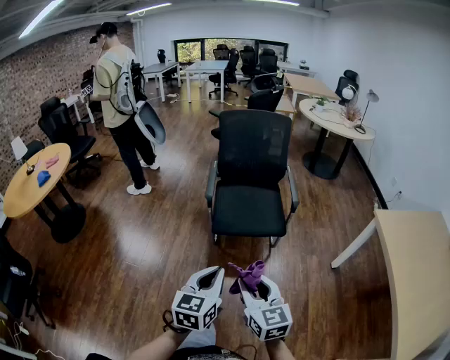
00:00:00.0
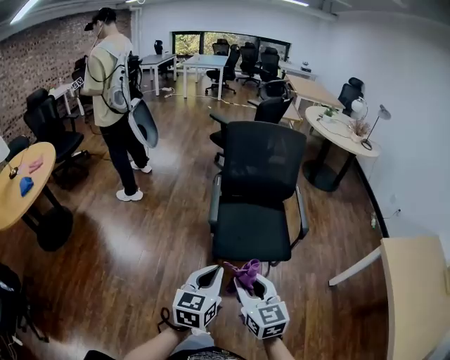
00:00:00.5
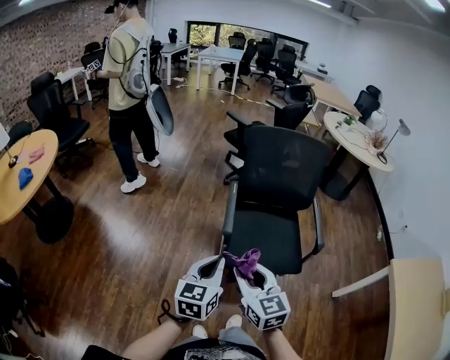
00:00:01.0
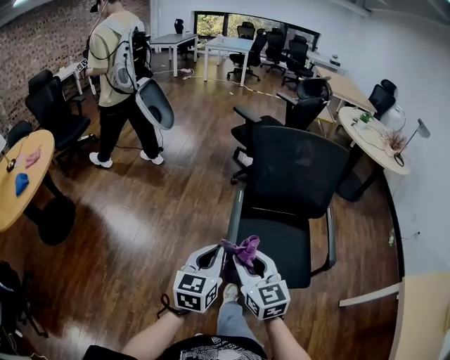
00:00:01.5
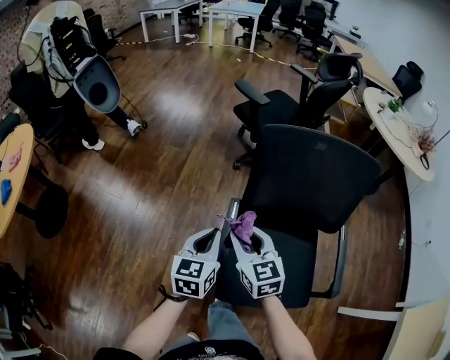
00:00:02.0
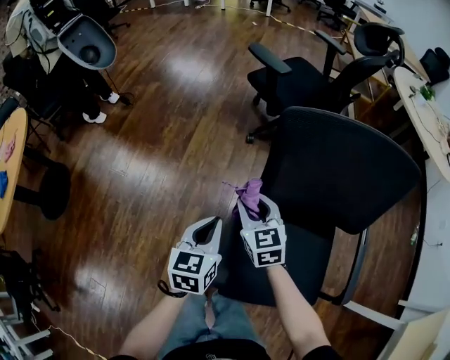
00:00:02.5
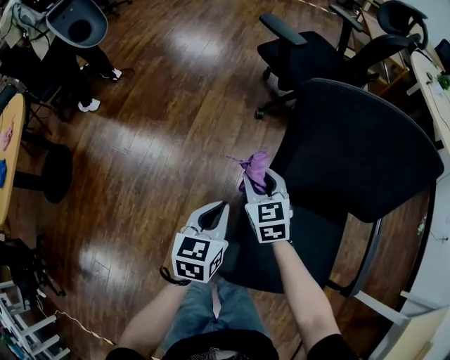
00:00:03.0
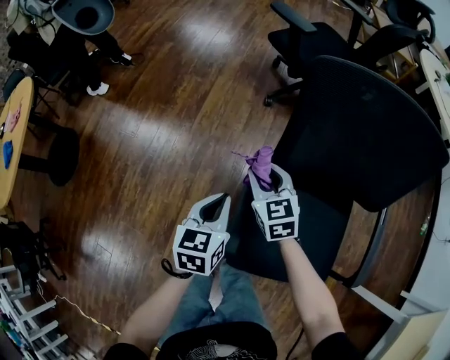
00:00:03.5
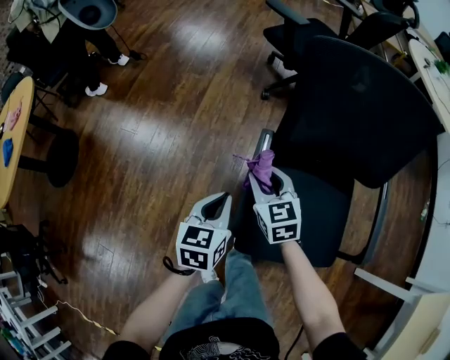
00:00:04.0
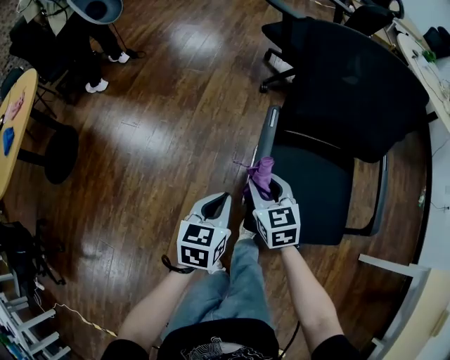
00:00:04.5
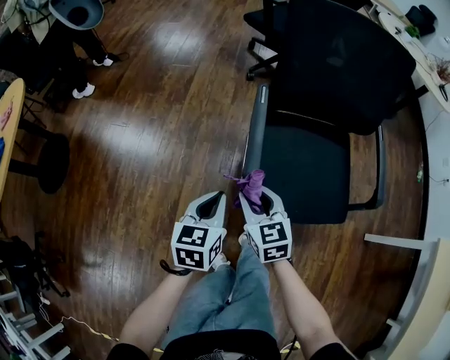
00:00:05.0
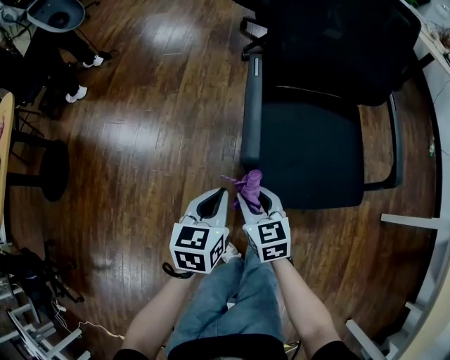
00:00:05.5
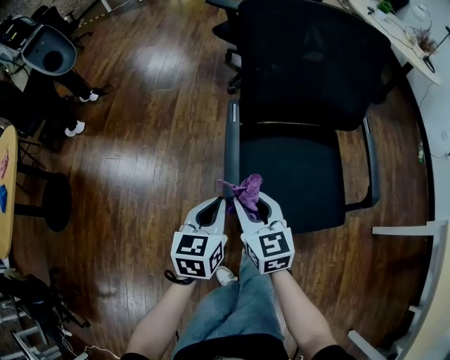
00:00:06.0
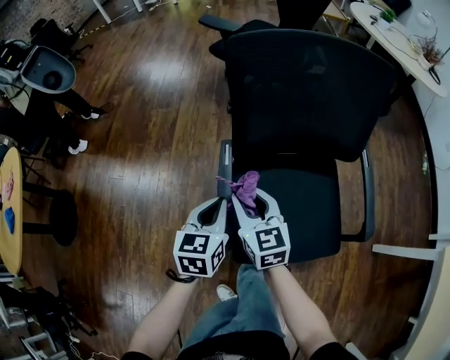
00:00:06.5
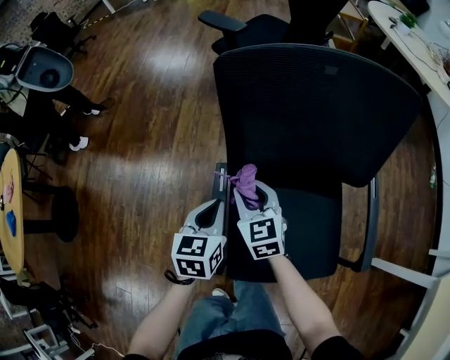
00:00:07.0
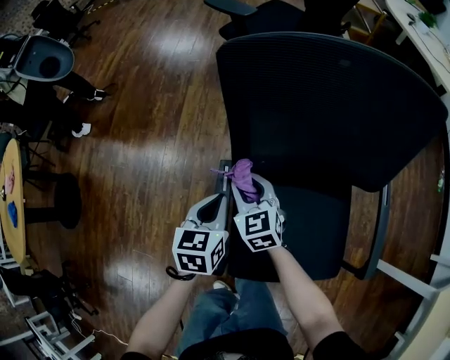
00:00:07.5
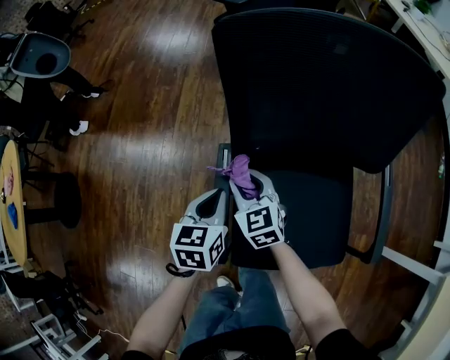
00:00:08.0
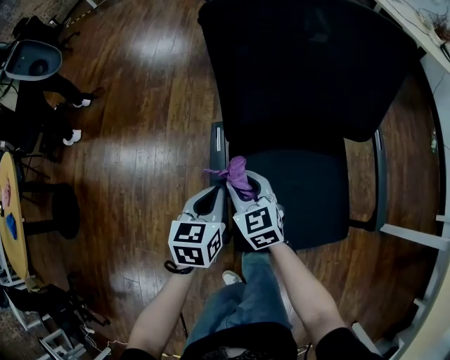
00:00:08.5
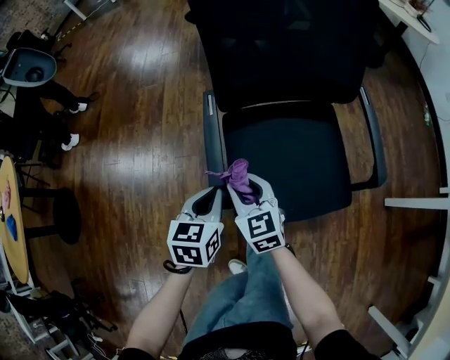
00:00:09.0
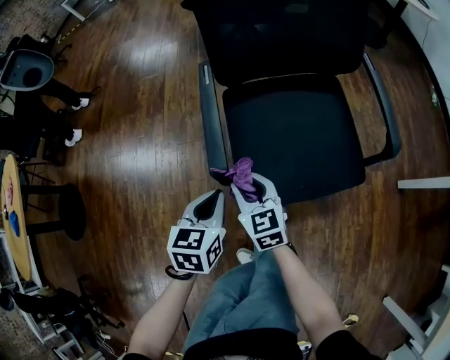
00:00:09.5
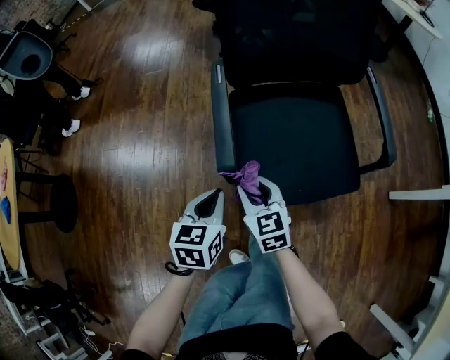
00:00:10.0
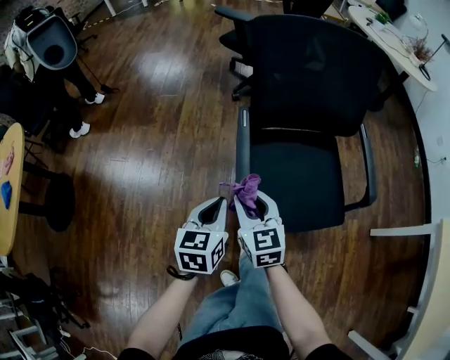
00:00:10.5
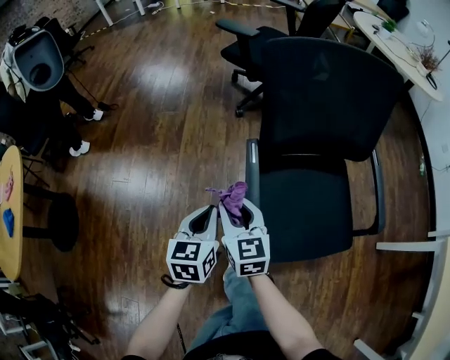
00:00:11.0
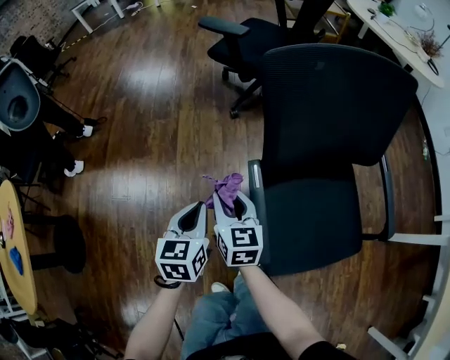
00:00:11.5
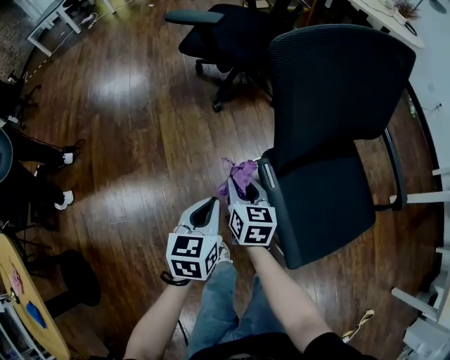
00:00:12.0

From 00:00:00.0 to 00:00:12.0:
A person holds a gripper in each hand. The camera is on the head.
From 00:00:00.0 to 00:00:02.0: Both grippers are carried forward, about 70 cm.
From 00:00:02.0 to 00:00:04.0: The grippers both shift downward by roughly 15 cm. The right gripper travels forward and back again, roughly 15 cm each way.
From 00:00:04.0 to 00:00:06.0: The right gripper shifts approximately 15 cm backward; the left gripper travels backward by approximately 10 cm.
From 00:00:06.0 to 00:00:08.0: Both grippers travel together forward, some 20 cm.
From 00:00:08.0 to 00:00:10.0: Both grippers travel together backward, approximately 25 cm.
From 00:00:10.0 to 00:00:12.0: Both grippers travel together forward and to the left, some 35 cm. The right gripper changes its angle by about 40 degrees.

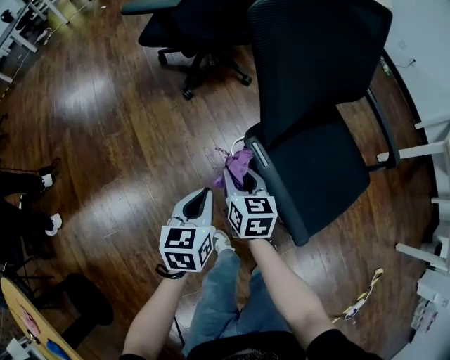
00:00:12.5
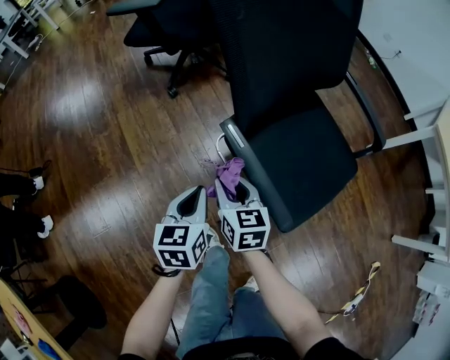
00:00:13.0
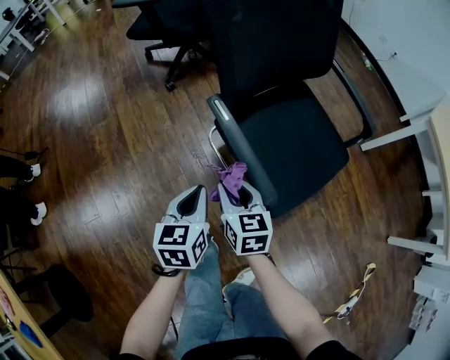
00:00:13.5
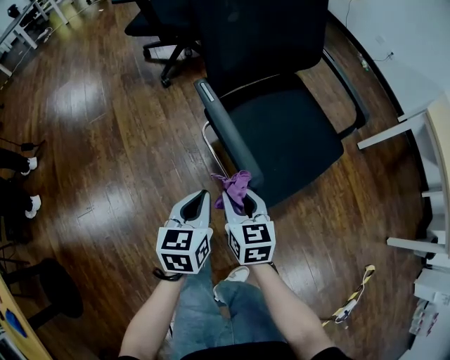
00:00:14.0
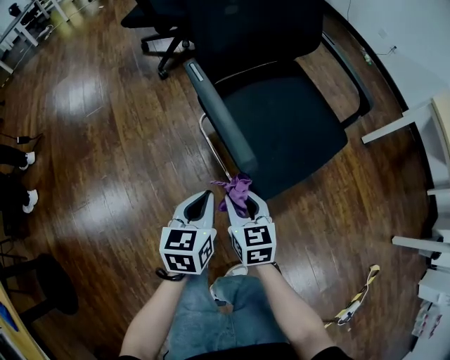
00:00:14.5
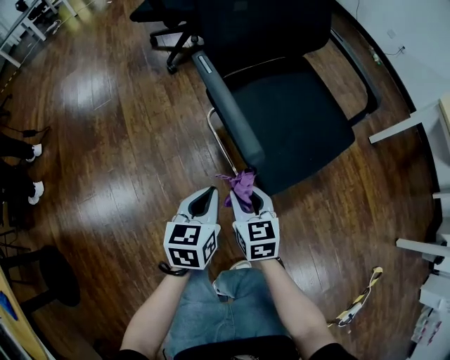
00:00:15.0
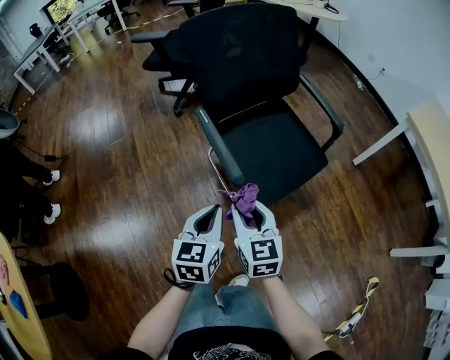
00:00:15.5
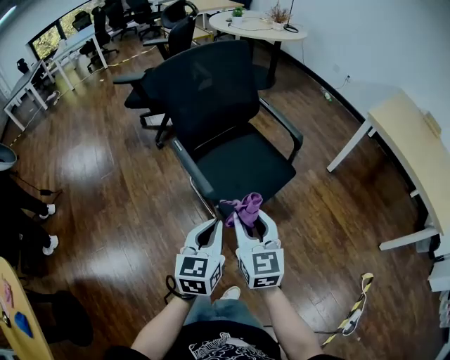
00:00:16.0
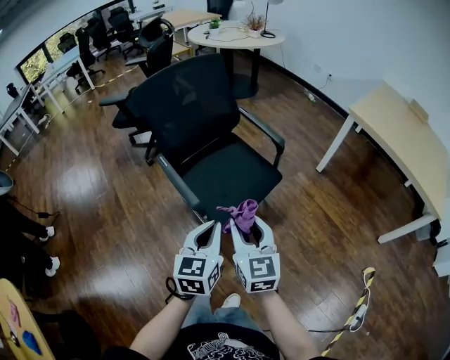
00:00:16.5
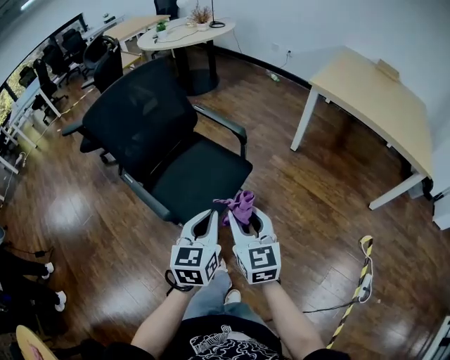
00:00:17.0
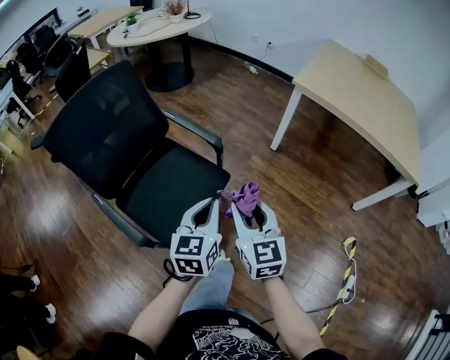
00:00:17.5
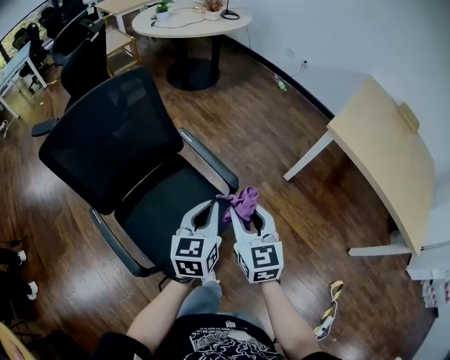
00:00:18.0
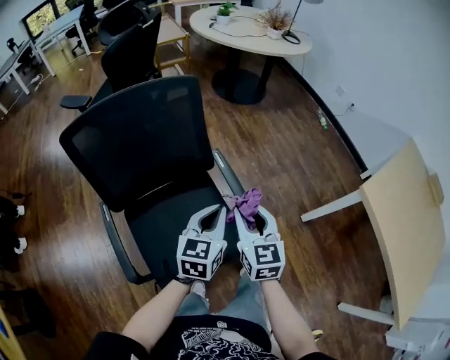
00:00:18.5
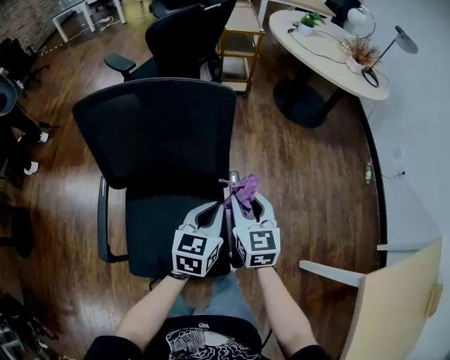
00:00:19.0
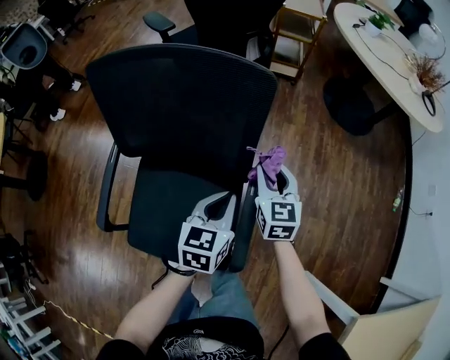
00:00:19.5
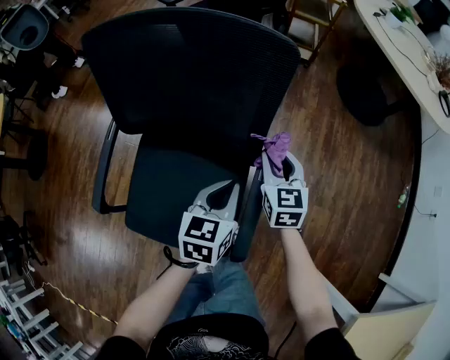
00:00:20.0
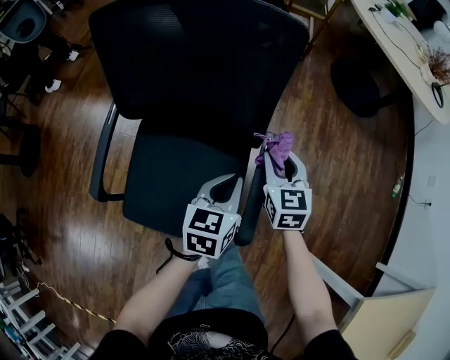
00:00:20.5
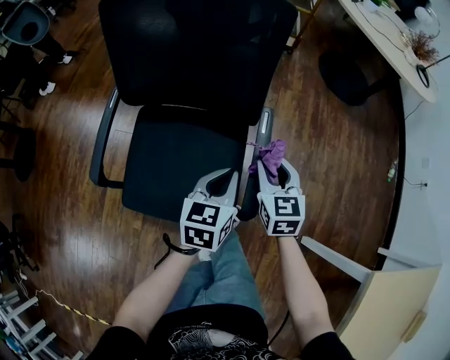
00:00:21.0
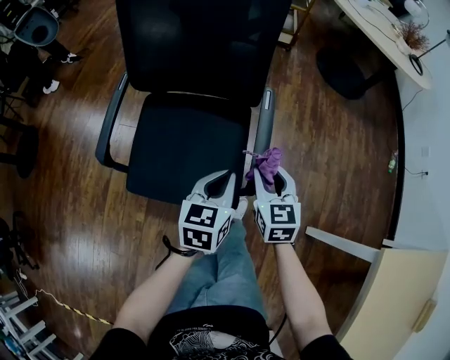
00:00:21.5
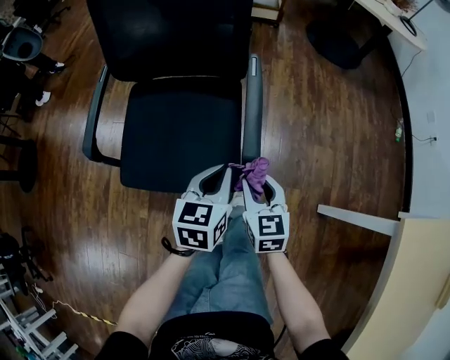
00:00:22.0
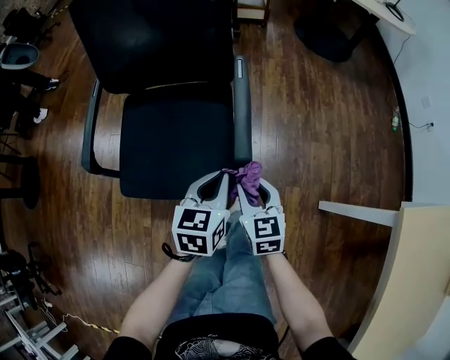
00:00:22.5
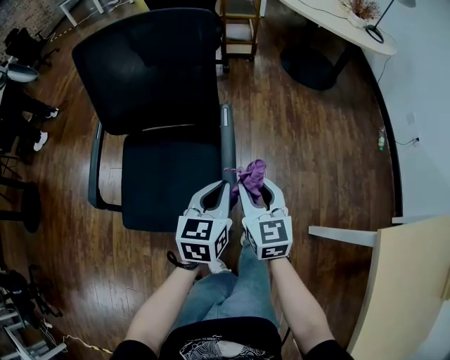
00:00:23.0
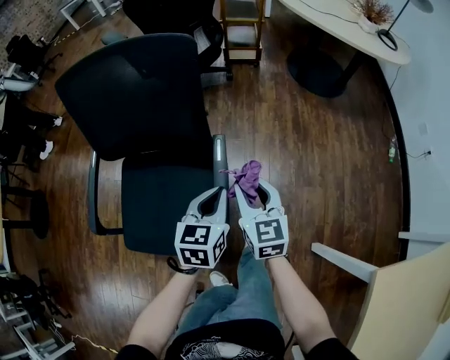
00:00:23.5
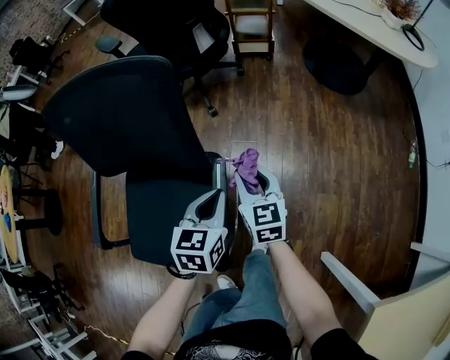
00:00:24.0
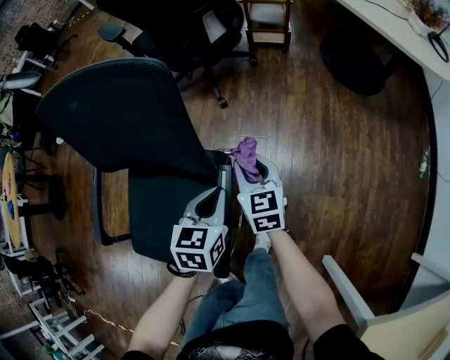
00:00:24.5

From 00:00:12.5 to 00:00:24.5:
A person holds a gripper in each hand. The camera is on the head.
From 00:00:12.5 to 00:00:14.5: Both grippers move backward and to the right, some 30 cm.
From 00:00:14.5 to 00:00:16.5: Both grippers move upward and to the right, some 35 cm. The left gripper changes its angle by approximately 20 degrees; the right gripper changes its angle by some 30 degrees.
From 00:00:16.5 to 00:00:18.5: Both grippers are carried forward, some 50 cm.
From 00:00:18.5 to 00:00:20.5: The right gripper ends up some 25 cm from where it was, and changes its angle by approximately 40 degrees. Meanwhile the left gripper is displaced downward by about 15 cm, and swivels some 40 degrees.
From 00:00:20.5 to 00:00:22.5: The two grippers go about 25 cm backward.
From 00:00:22.5 to 00:00:24.5: The two grippers go about 35 cm forward.

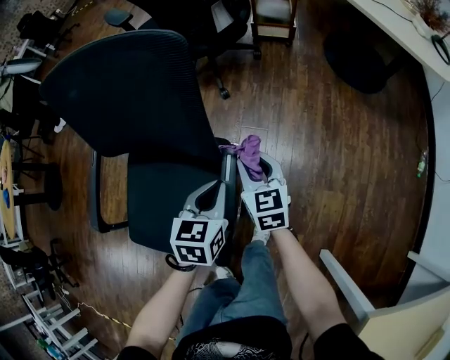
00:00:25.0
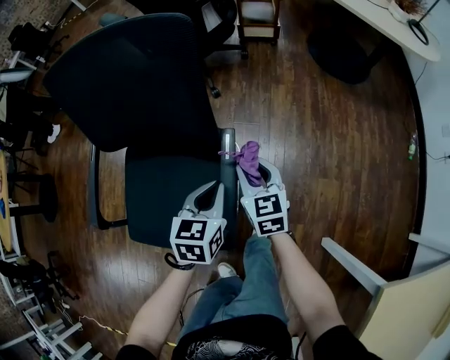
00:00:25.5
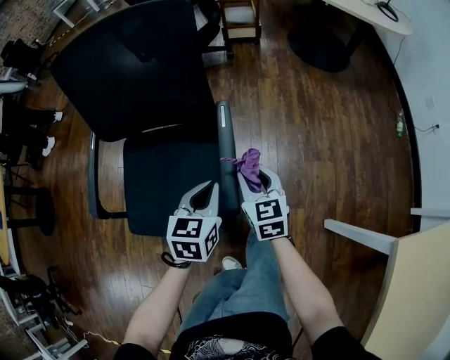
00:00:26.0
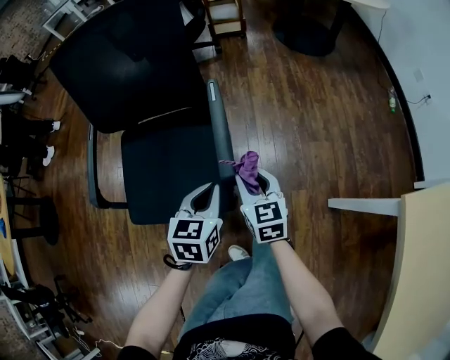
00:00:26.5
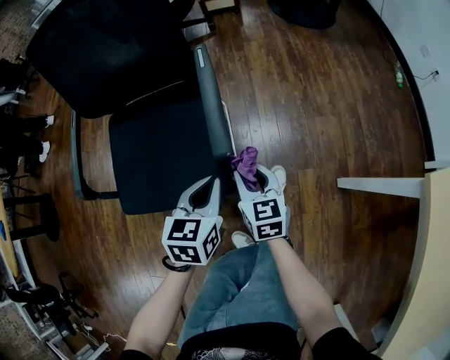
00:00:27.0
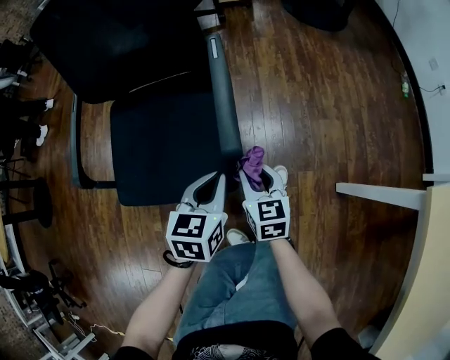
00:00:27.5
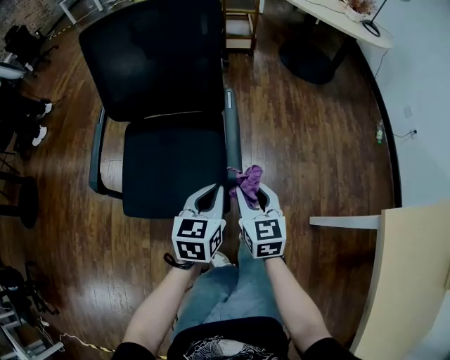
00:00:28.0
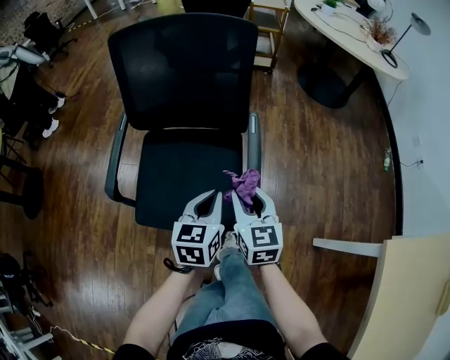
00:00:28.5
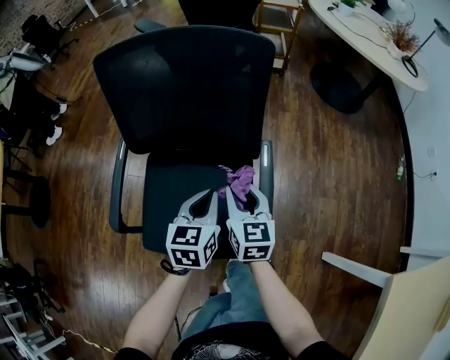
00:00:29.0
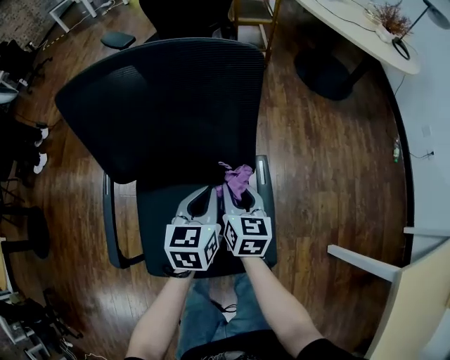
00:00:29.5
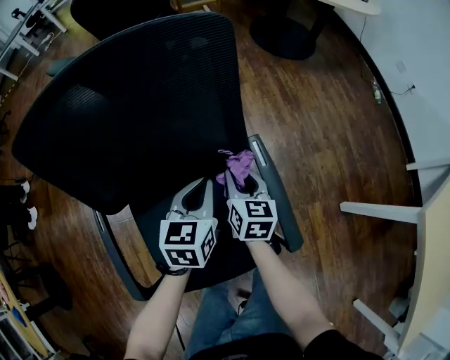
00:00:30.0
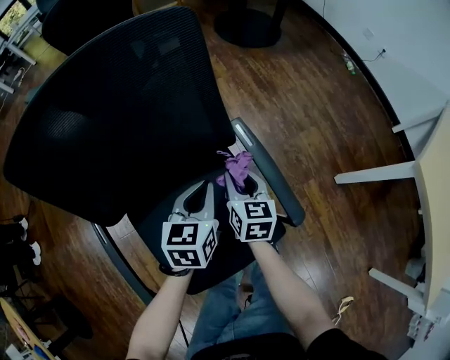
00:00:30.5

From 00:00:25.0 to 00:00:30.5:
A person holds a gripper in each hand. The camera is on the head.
From 00:00:25.0 to 00:00:27.0: The grippers both shift backward by about 30 cm.
From 00:00:27.0 to 00:00:28.5: Both grippers travel together upward and to the left, roughly 20 cm.
From 00:00:28.5 to 00:00:30.5: The right gripper ends up about 25 cm from where it was, and swivels about 40 degrees. Meanwhile the left gripper shifts by approximately 25 cm, and turns by about 30 degrees.
